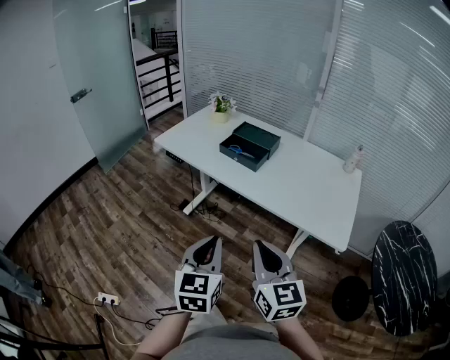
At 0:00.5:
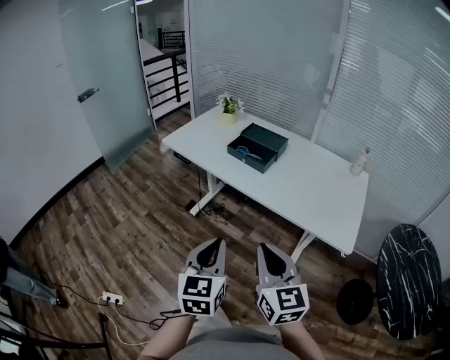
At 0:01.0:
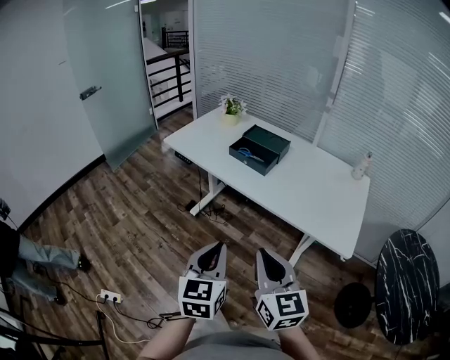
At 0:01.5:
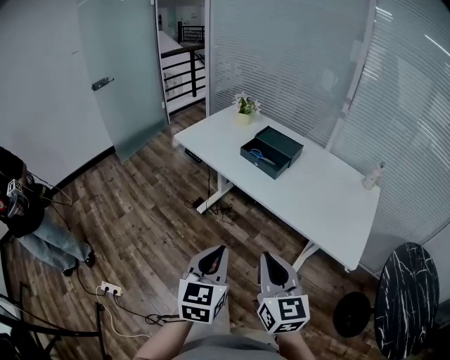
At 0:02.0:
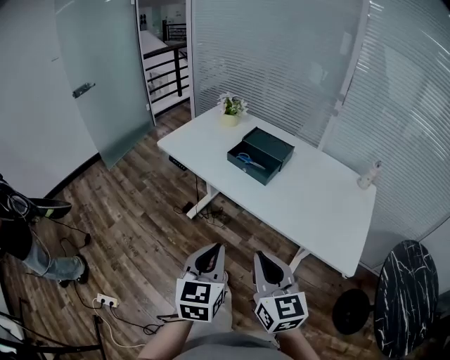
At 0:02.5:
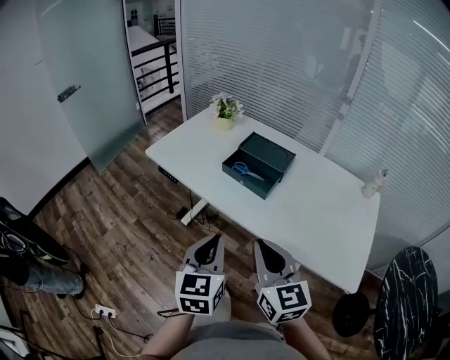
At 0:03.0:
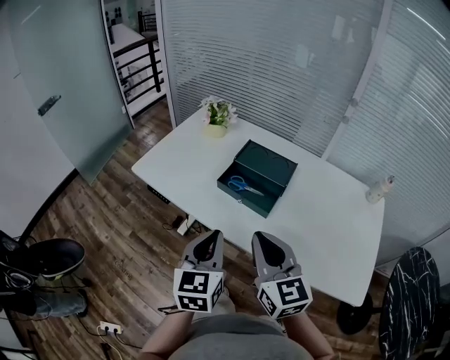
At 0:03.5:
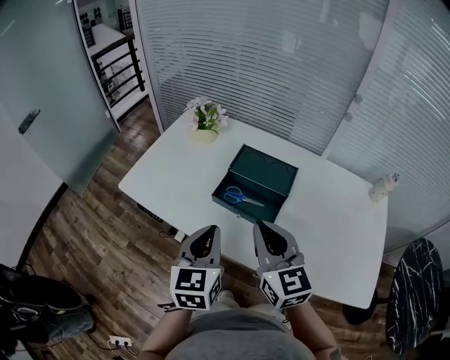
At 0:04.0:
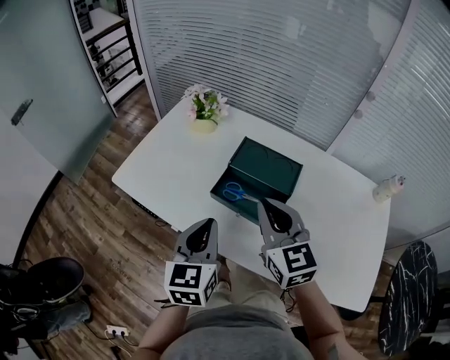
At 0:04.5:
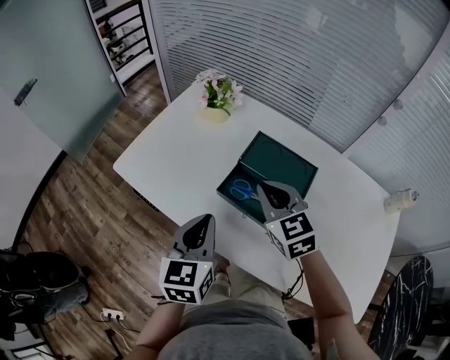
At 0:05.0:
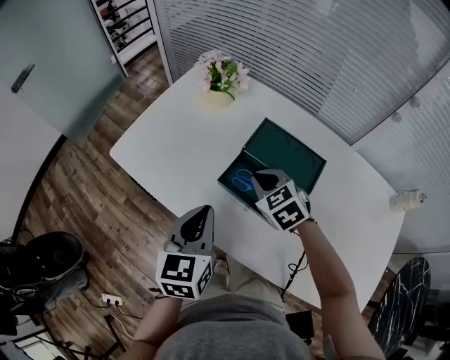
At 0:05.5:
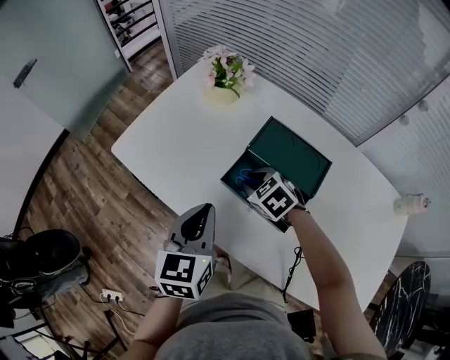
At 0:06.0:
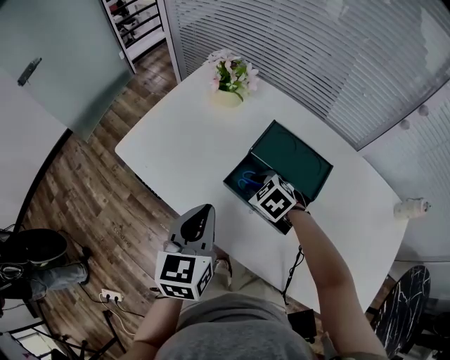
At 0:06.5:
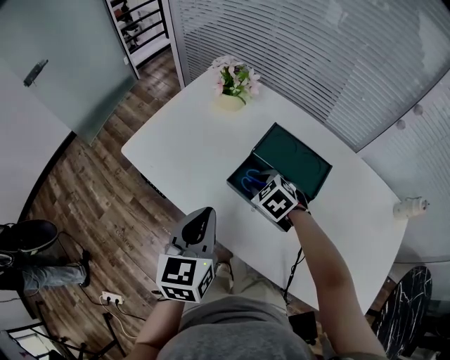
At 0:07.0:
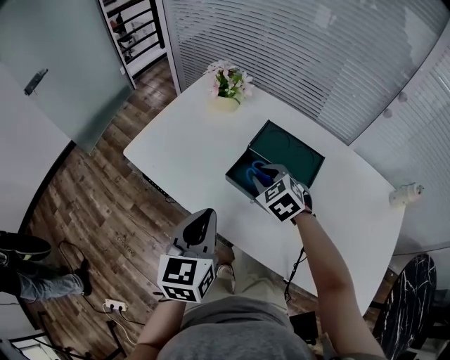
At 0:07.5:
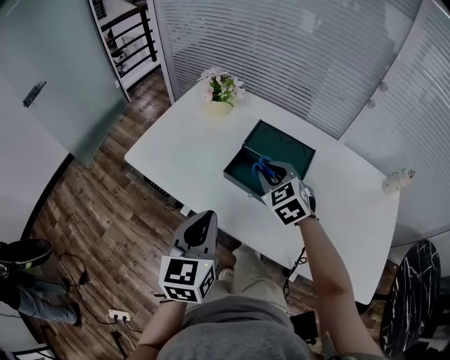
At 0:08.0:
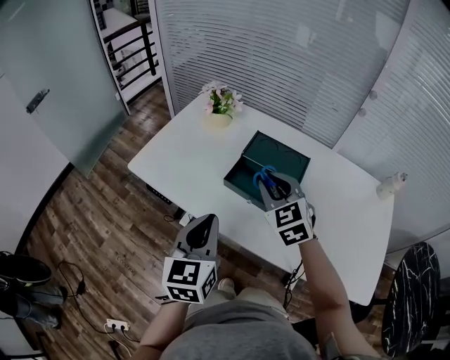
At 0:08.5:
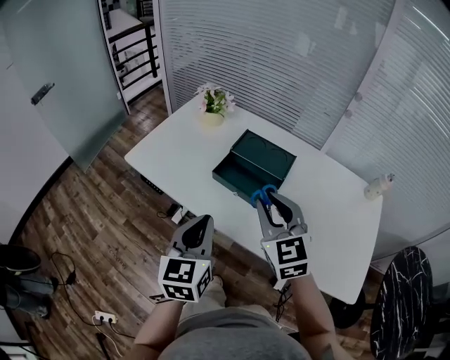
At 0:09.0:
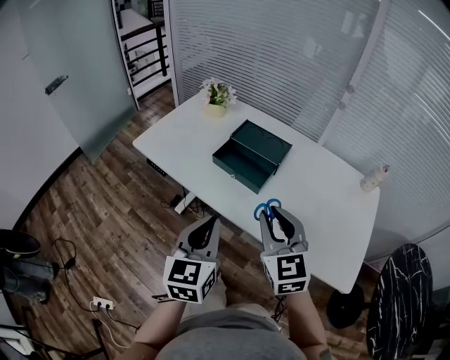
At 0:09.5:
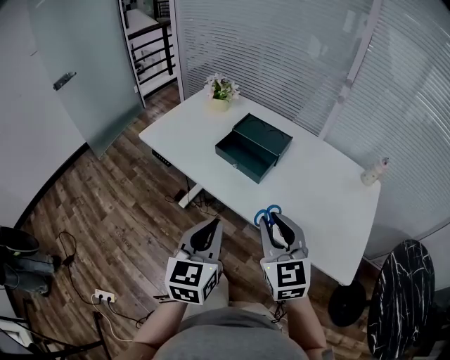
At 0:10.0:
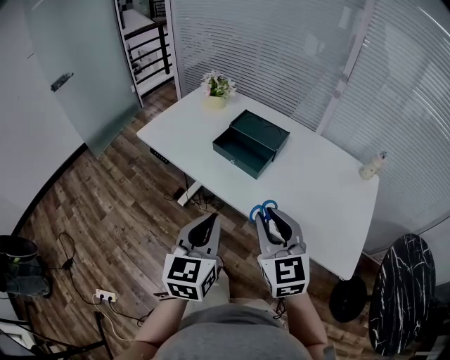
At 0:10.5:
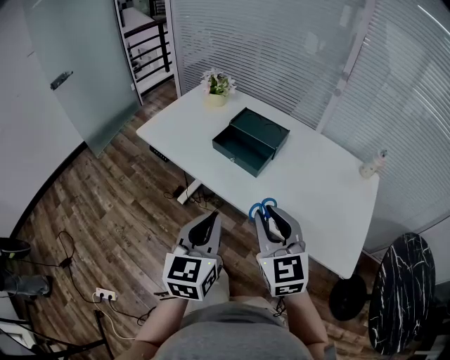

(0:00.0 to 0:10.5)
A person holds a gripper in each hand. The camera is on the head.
0:00.0 - 0:02.0: The two grippers go about 10 cm forward.
0:02.0 - 0:04.0: The two grippers travel together, forward, about 40 cm.
0:04.0 - 0:06.5: The left gripper ends up roughly 5 cm from where it was, while the right gripper is displaced downward and forward by some 25 cm, and points its fingers approximately 40 degrees further downward.
0:06.5 - 0:08.5: The right gripper goes some 35 cm upward and backward, and tilts its fingers roughly 40 degrees upward. The left gripper goes roughly 15 cm backward.
0:08.5 - 0:10.5: Both grippers move backward, roughly 15 cm.

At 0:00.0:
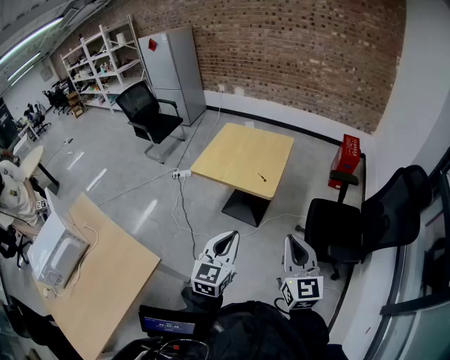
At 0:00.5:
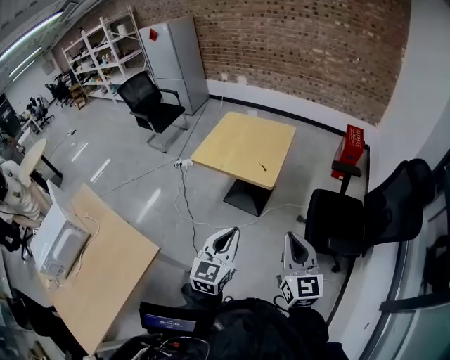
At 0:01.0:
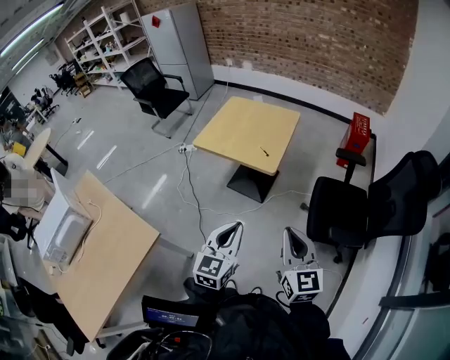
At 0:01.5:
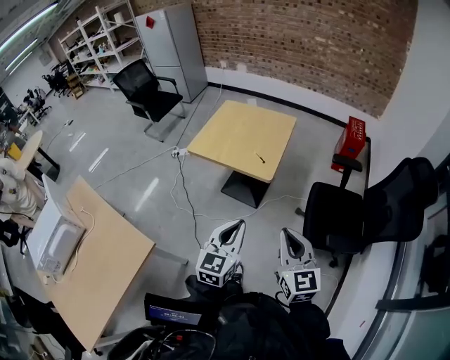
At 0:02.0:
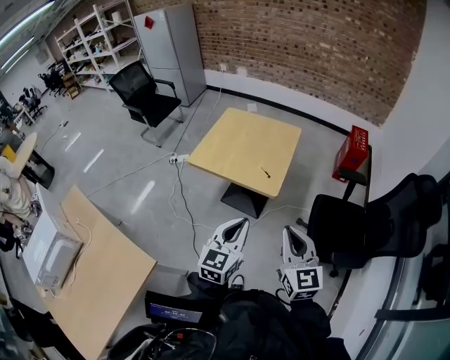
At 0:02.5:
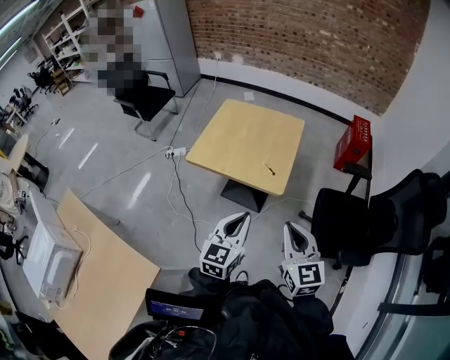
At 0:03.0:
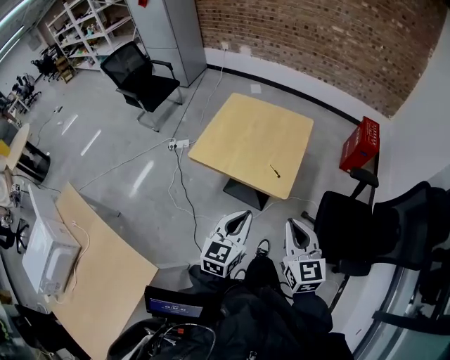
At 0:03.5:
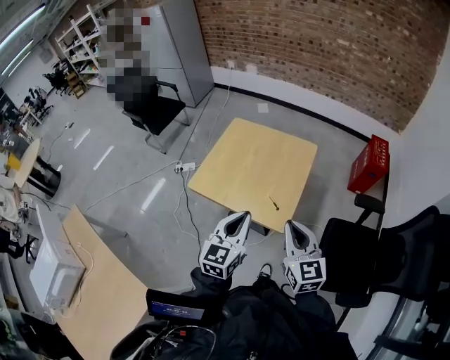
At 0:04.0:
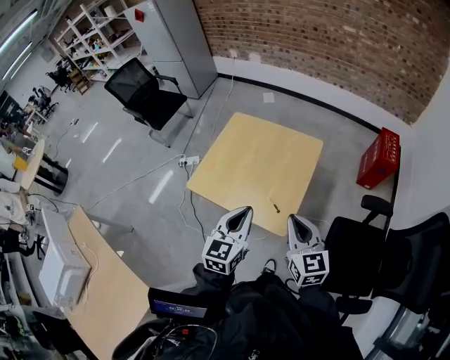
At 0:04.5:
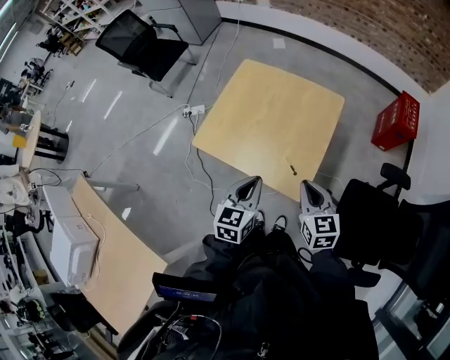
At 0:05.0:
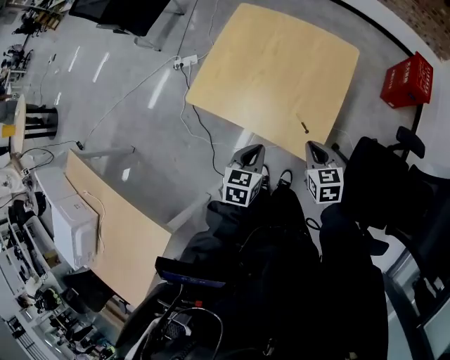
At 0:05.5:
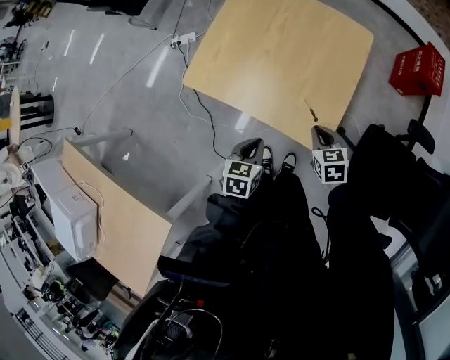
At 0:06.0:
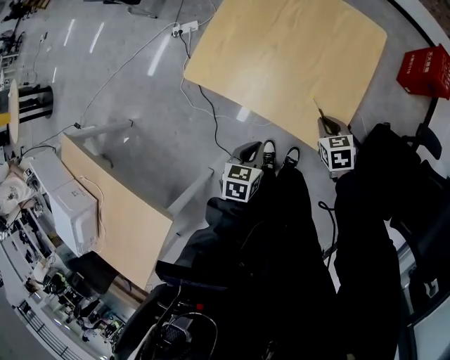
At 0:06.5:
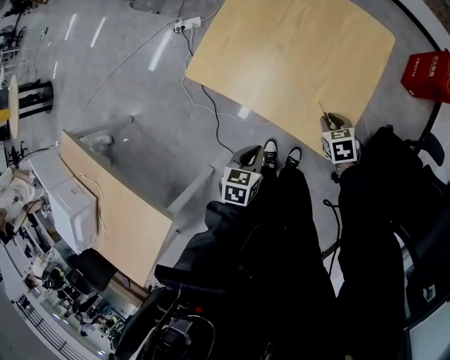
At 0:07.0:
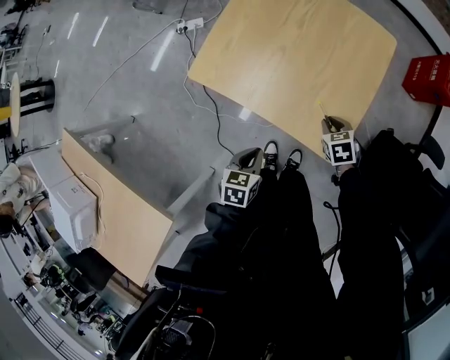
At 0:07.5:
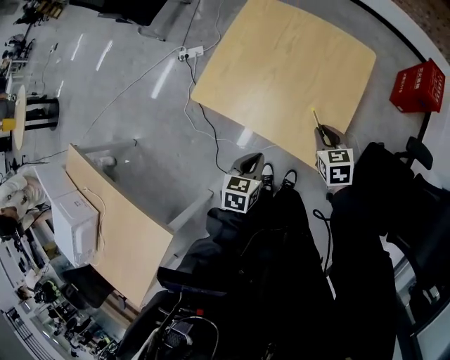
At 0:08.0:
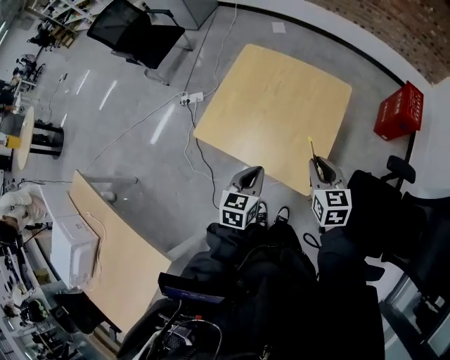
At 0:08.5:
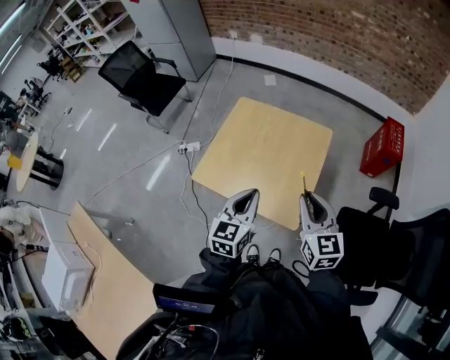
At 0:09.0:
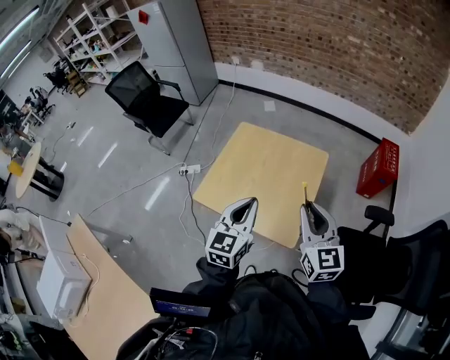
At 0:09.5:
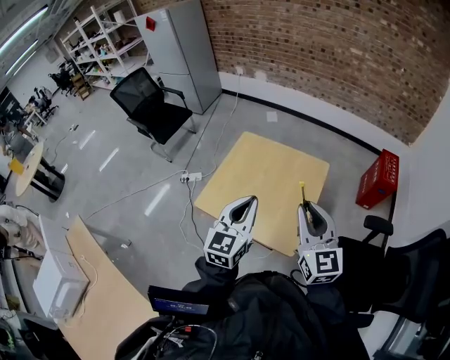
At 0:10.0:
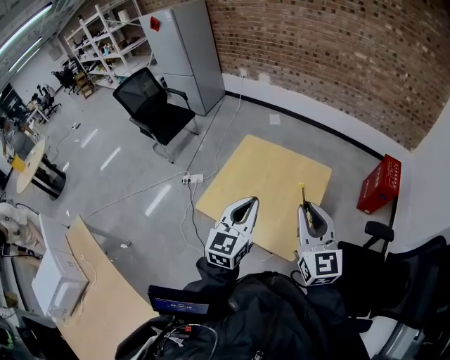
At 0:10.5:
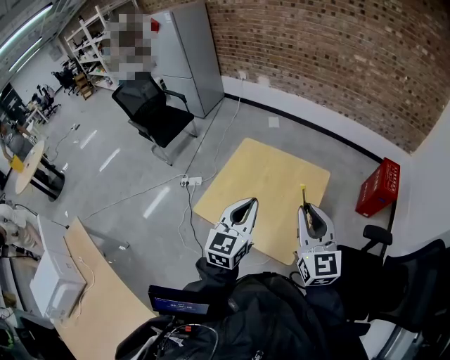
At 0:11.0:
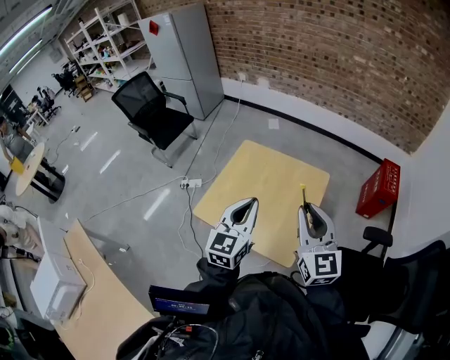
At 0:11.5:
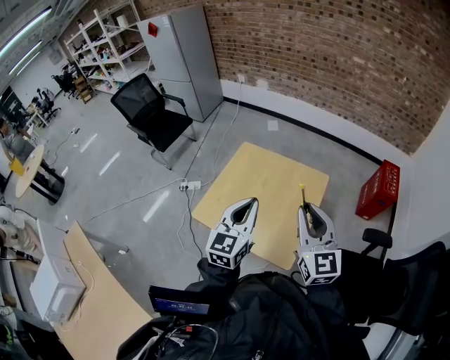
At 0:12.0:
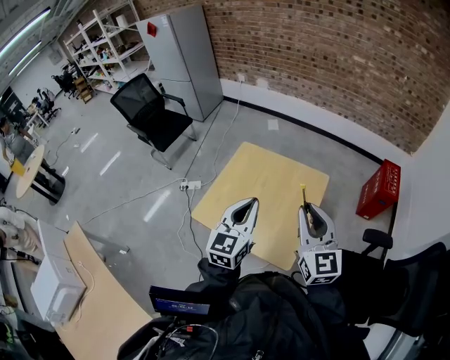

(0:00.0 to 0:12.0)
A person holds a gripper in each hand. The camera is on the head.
0:00.0 - 0:02.0: The grippers both shift forward by roughly 10 cm.
0:02.0 - 0:04.0: Both grippers move forward, roughly 30 cm.
0:04.0 - 0:06.0: The two grippers go roughly 35 cm downward. The left gripper points its fingers approximately 40 degrees further downward, while the right gripper angles its fingers downward, by some 40 degrees.
0:06.0 - 0:08.0: Both grippers travel together upward, some 20 cm. The right gripper turns by about 30 degrees; the left gripper swivels roughly 20 degrees.
0:08.0 - 0:10.0: Both grippers move upward, some 25 cm. The right gripper points its fingers roughly 30 degrees further upward, while the left gripper turns by about 30 degrees.
0:10.0 - 0:12.0: There are only small adjustments of the grippers.

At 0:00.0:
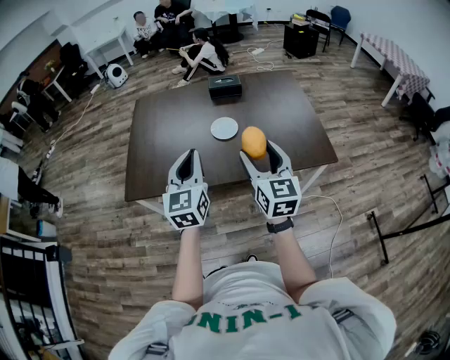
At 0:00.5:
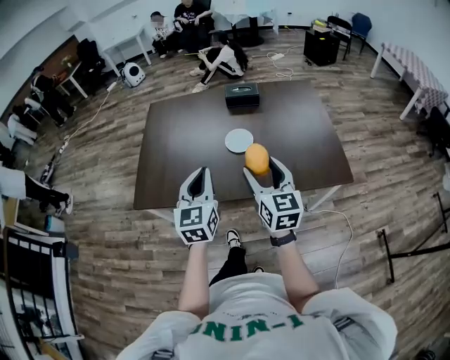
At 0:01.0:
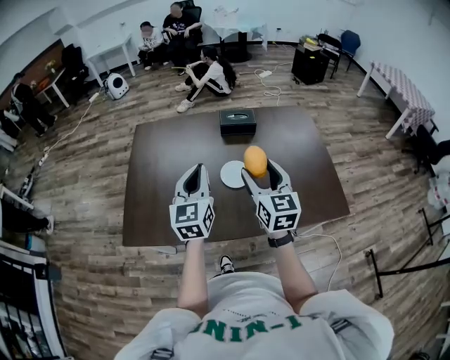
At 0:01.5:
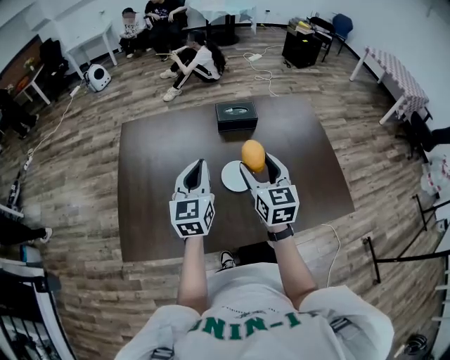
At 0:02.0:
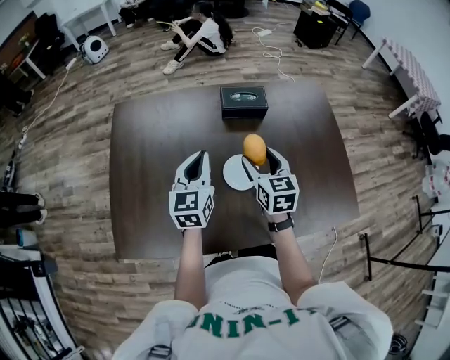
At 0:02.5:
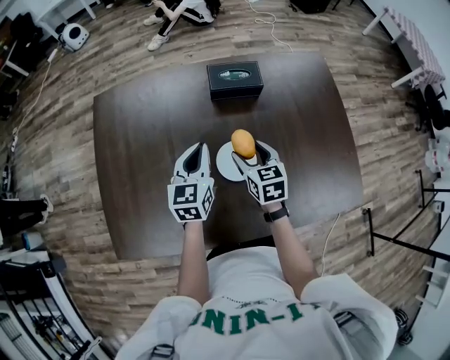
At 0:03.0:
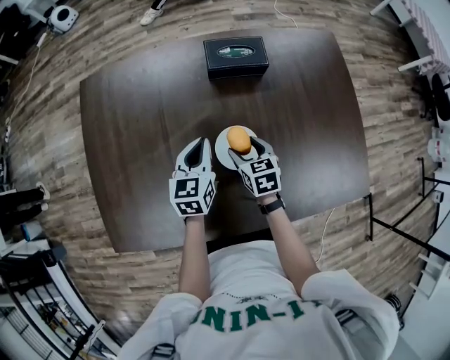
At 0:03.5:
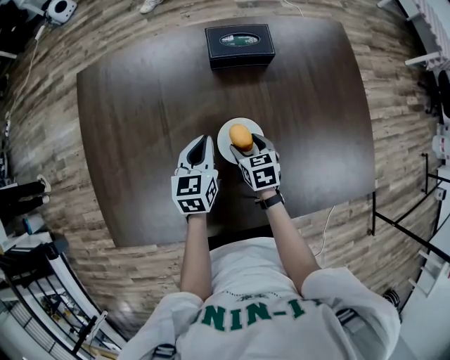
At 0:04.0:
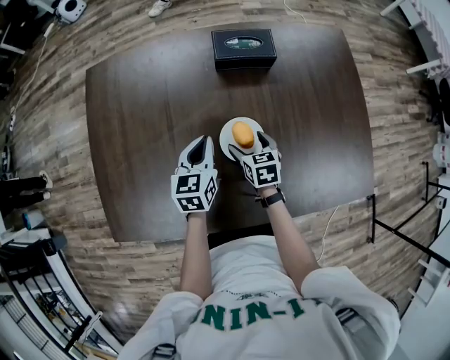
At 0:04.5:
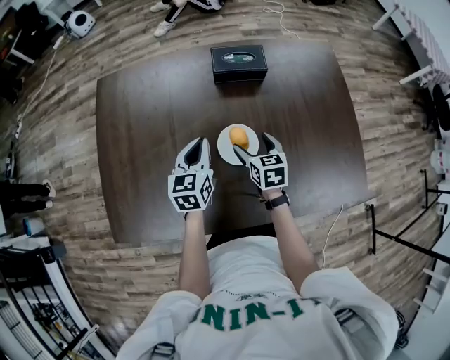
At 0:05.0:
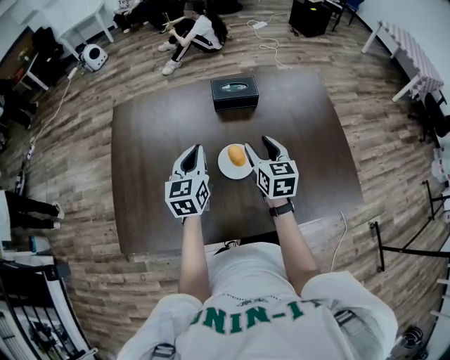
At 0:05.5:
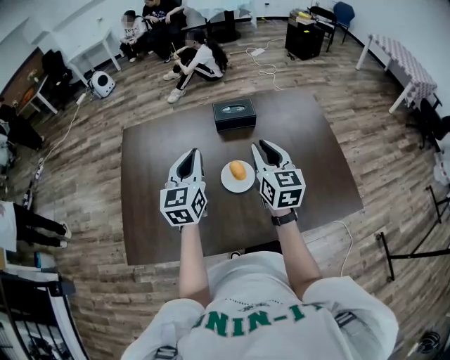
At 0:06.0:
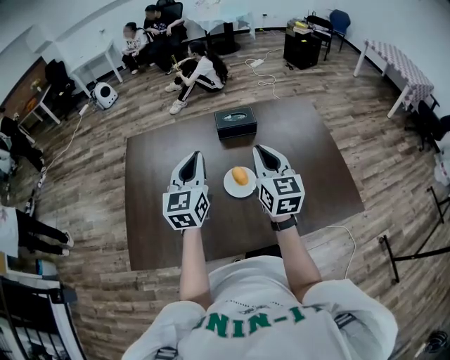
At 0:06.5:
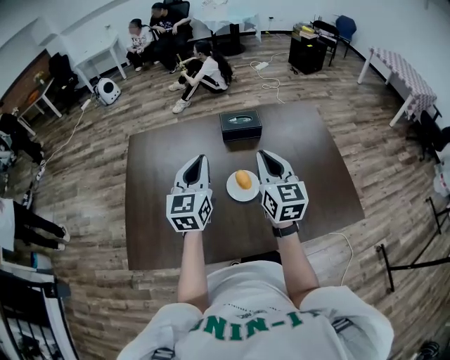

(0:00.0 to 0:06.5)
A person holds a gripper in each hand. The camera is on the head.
0:00.0 - 0:02.0: The two grippers travel together, forward, approximately 40 cm. The right gripper rotates some 20 degrees.
0:02.0 - 0:04.5: Both grippers move downward, some 15 cm.
0:04.5 - 0:06.5: Both grippers travel together upward, some 25 cm. The right gripper angles its fingers upward, by approximately 30 degrees, and closes; the left gripper swivels some 20 degrees.
